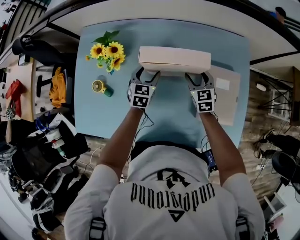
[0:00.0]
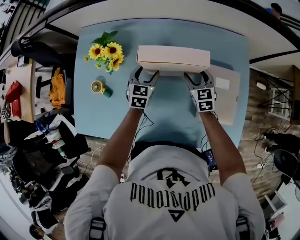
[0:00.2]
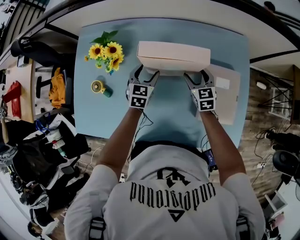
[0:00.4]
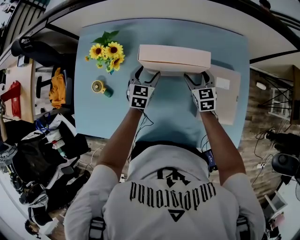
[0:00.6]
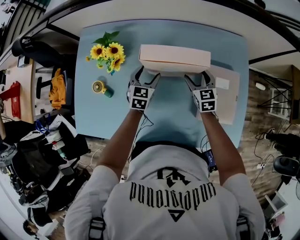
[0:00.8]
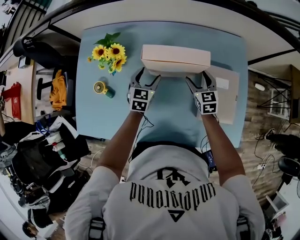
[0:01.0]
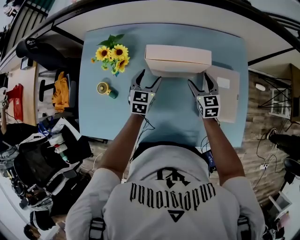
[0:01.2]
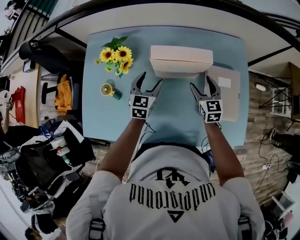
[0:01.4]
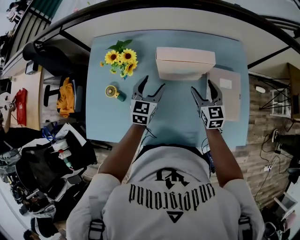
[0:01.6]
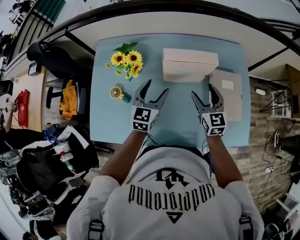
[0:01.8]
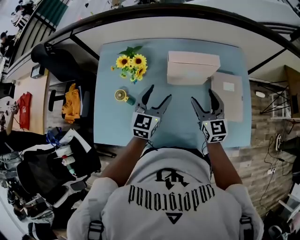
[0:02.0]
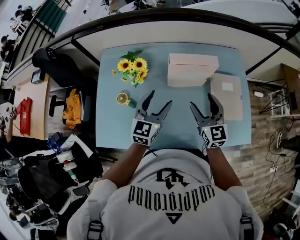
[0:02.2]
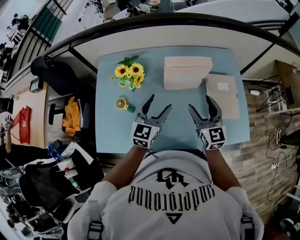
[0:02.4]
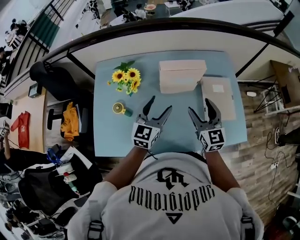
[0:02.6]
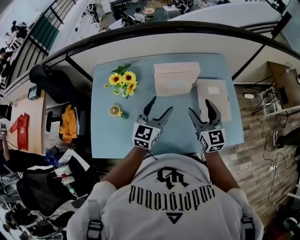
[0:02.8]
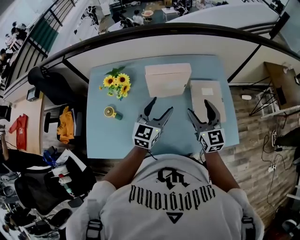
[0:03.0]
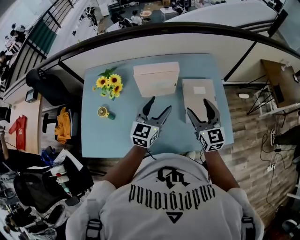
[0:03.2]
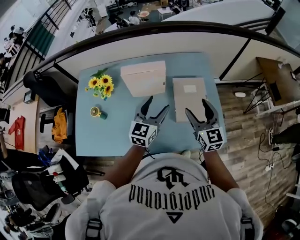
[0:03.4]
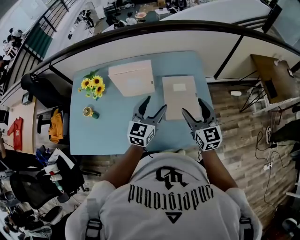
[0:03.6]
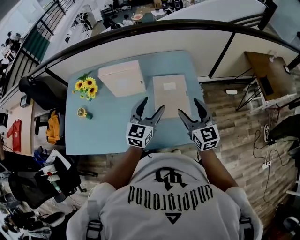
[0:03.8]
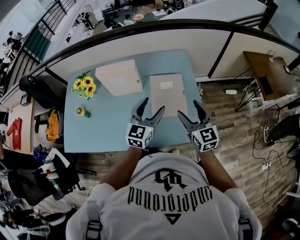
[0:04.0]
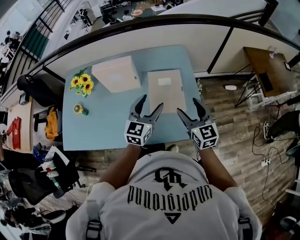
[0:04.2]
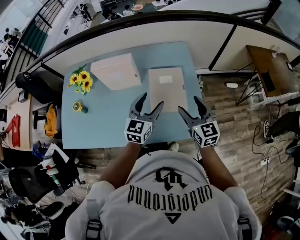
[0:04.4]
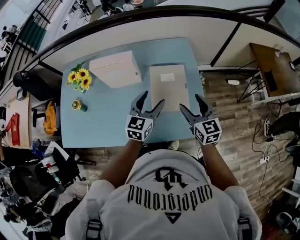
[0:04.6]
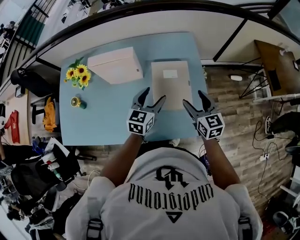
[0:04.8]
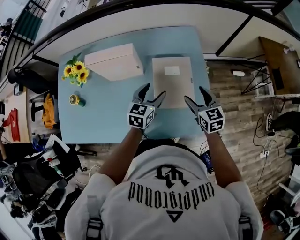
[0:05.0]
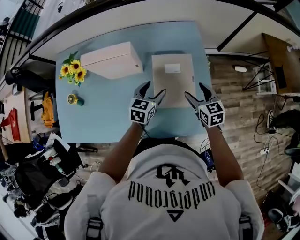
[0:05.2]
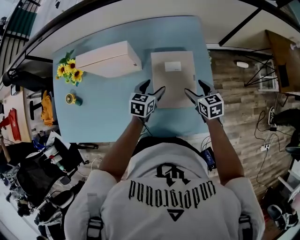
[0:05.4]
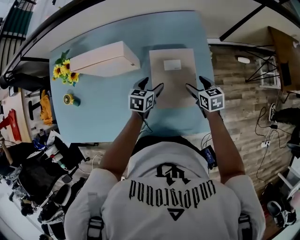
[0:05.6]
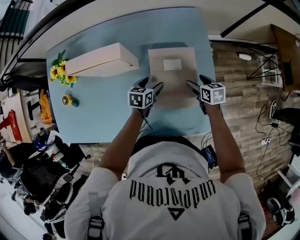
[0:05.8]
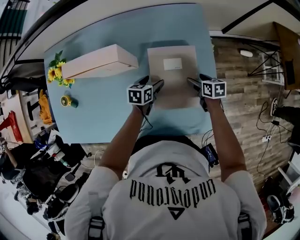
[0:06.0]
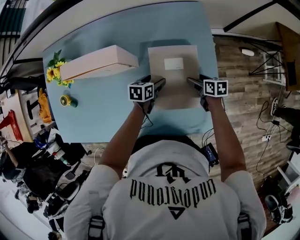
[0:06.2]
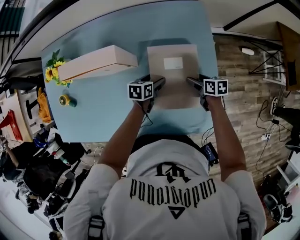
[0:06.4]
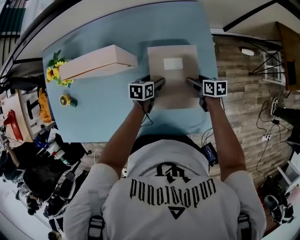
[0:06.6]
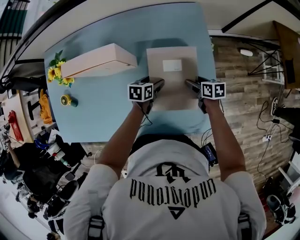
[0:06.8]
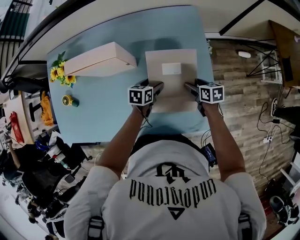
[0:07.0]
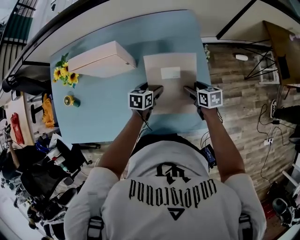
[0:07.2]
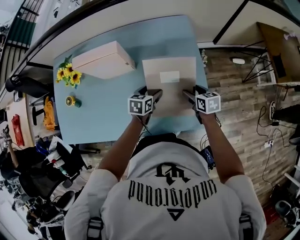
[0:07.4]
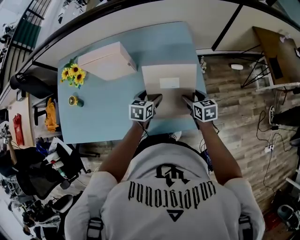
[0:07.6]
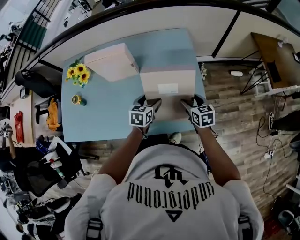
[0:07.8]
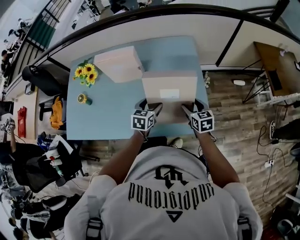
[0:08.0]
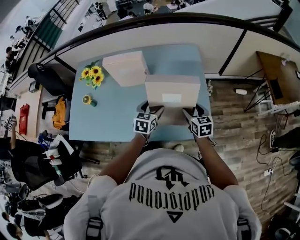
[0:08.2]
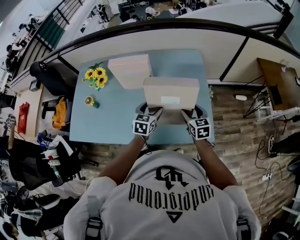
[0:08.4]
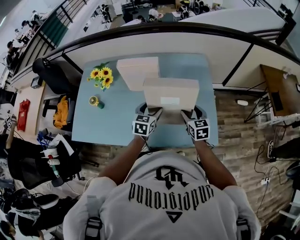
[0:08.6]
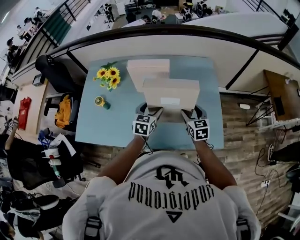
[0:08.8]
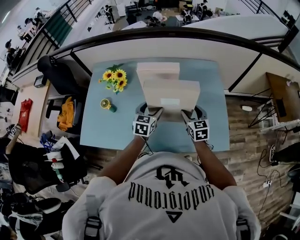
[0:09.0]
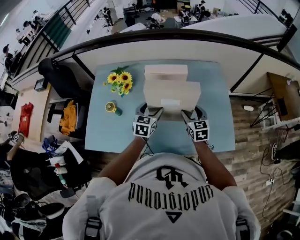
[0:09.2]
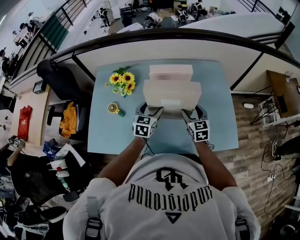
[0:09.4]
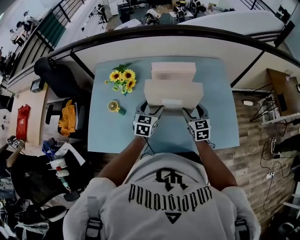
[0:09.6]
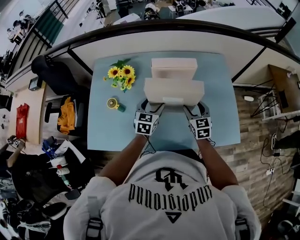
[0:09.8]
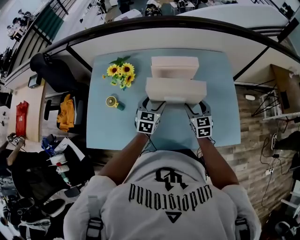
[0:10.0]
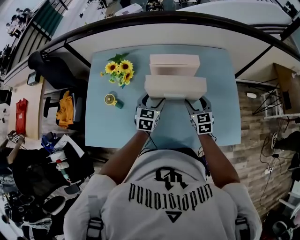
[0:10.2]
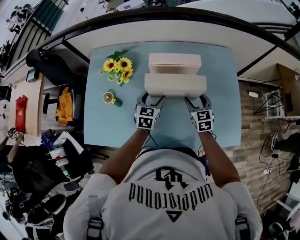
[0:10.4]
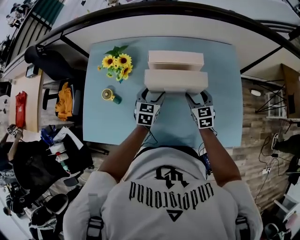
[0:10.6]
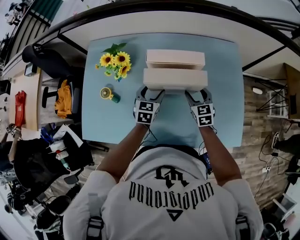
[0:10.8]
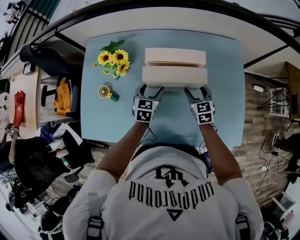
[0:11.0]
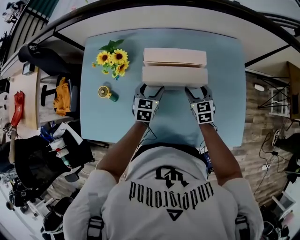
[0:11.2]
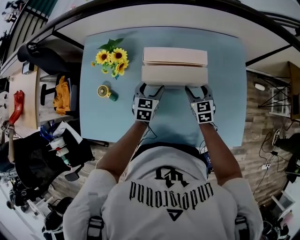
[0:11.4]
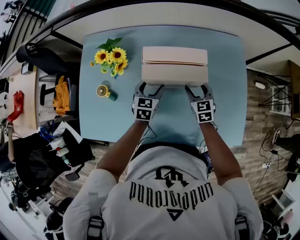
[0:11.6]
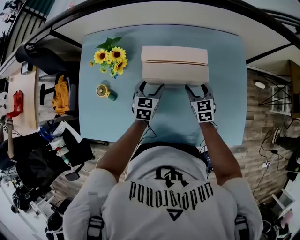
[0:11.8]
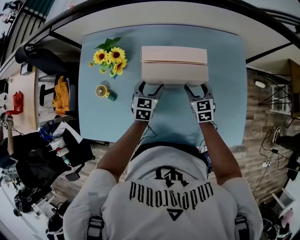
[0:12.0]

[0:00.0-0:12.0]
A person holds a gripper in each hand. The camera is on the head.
0:00.0 to 0:01.6: The two grippers go some 10 cm upward and backward.
0:01.6 to 0:03.0: The left gripper heads upward, backward and to the right, covering roughly 20 cm. The right gripper moves upward and backward, roughly 20 cm.
0:03.0 to 0:04.4: Both grippers travel together to the right, approximately 25 cm.
0:04.4 to 0:06.0: Both grippers travel together downward and forward, some 35 cm. The right gripper points its fingers approximately 40 degrees further downward; the left gripper tips its fingers downward by some 30 degrees.
0:06.0 to 0:07.6: The grippers both shift backward and upward by roughly 15 cm.
0:07.6 to 0:09.0: The two grippers go some 25 cm to the left and upward. The left gripper rotates about 20 degrees; the right gripper turns by approximately 20 degrees.
0:09.0 to 0:10.4: Both grippers move to the left and forward, some 10 cm.
0:10.4 to 0:12.0: The right gripper shifts approximately 10 cm forward and downward. The left gripper travels downward and forward by about 10 cm.

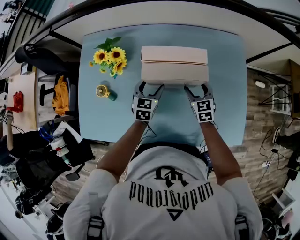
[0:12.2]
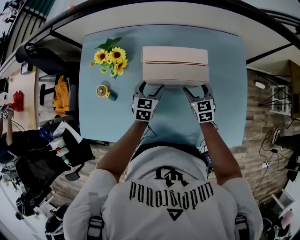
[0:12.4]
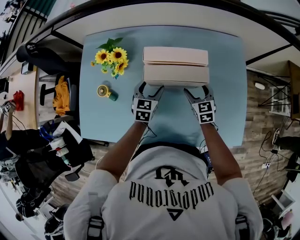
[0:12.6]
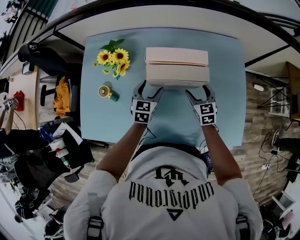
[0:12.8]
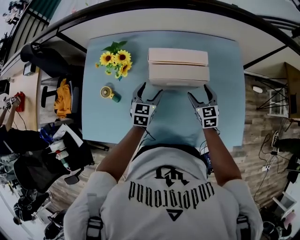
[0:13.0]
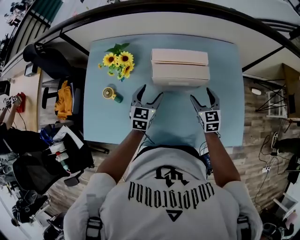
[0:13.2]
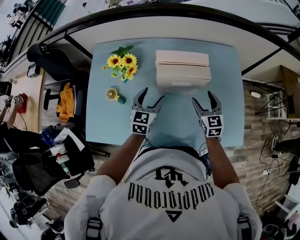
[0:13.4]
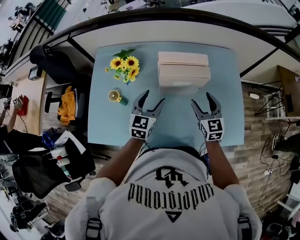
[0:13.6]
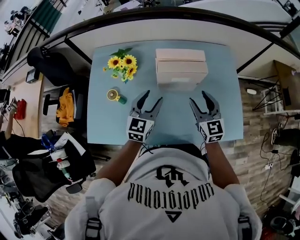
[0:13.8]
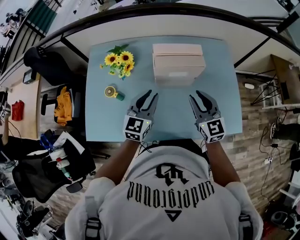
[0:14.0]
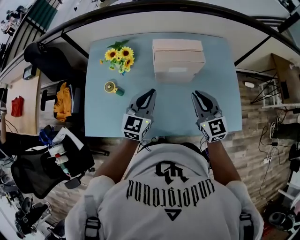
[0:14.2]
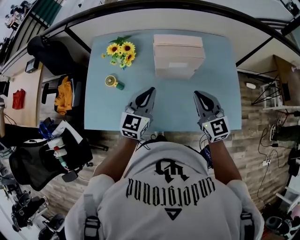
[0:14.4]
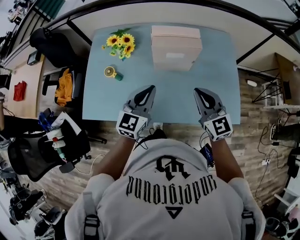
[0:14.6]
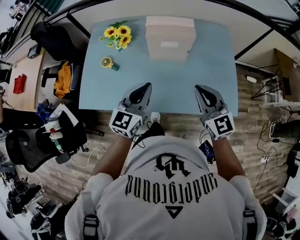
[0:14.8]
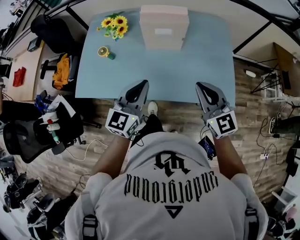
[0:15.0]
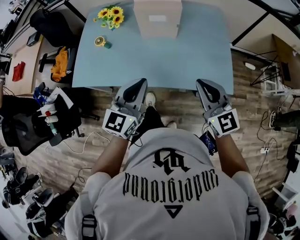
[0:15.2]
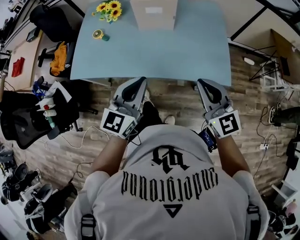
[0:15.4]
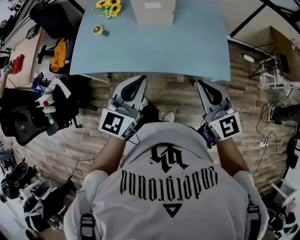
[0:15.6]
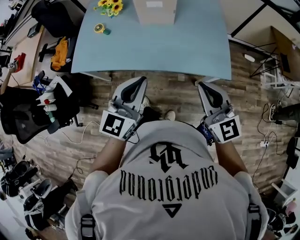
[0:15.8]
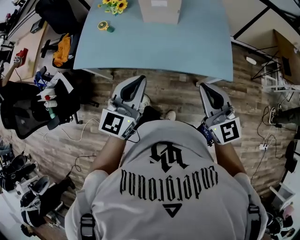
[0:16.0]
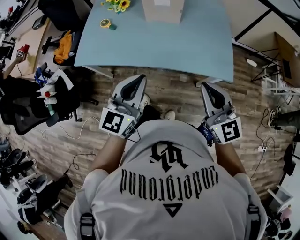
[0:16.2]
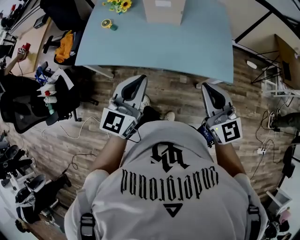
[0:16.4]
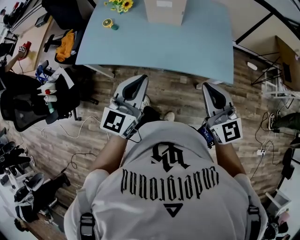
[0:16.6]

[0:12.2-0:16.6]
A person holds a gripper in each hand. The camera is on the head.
0:12.2 to 0:13.6: The grippers both shift upward and backward by roughly 15 cm.
0:13.6 to 0:15.2: Both grippers move backward, some 30 cm. The left gripper closes its fingers. The right gripper rotates approximately 20 degrees, and closes its fingers.
0:15.2 to 0:16.6: Both grippers move backward, about 10 cm.

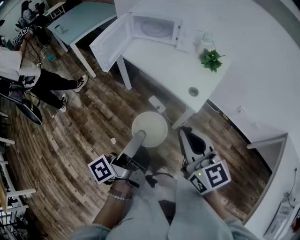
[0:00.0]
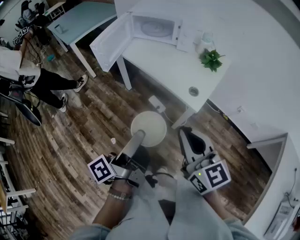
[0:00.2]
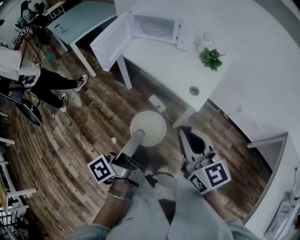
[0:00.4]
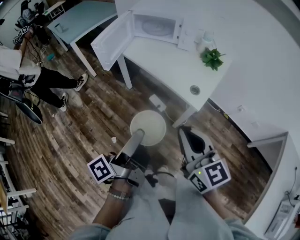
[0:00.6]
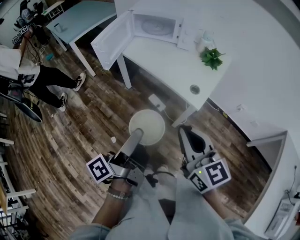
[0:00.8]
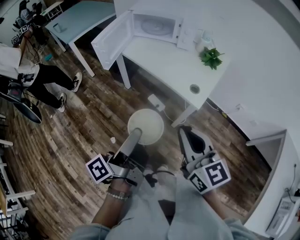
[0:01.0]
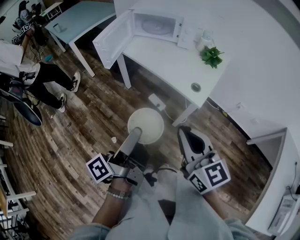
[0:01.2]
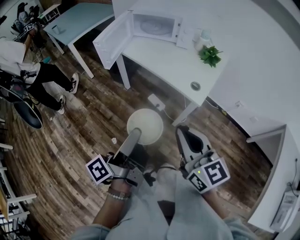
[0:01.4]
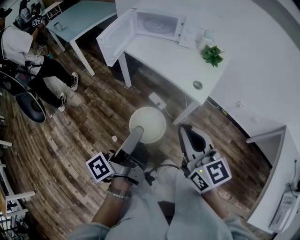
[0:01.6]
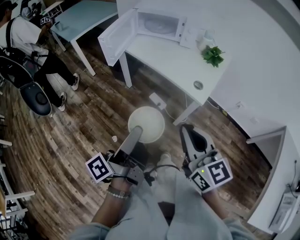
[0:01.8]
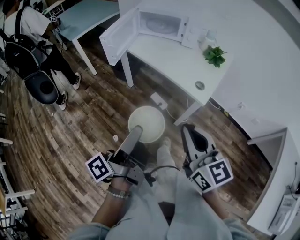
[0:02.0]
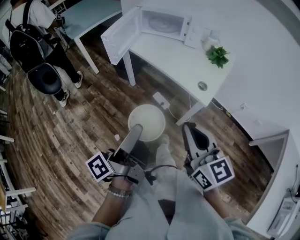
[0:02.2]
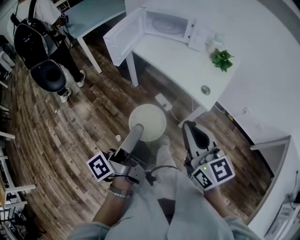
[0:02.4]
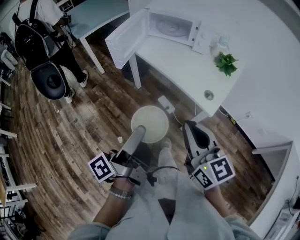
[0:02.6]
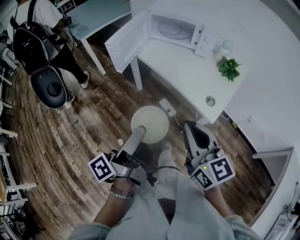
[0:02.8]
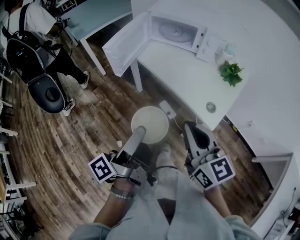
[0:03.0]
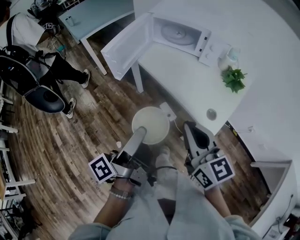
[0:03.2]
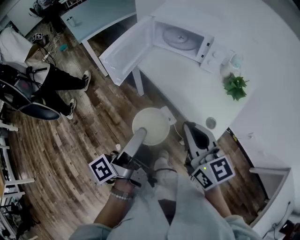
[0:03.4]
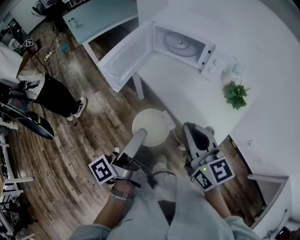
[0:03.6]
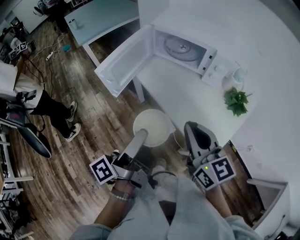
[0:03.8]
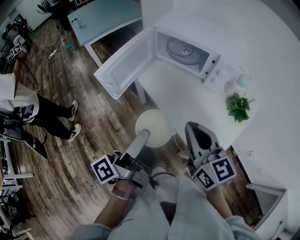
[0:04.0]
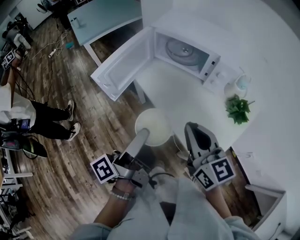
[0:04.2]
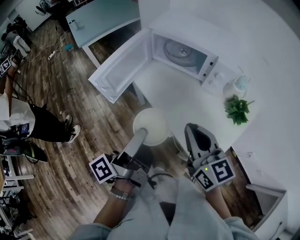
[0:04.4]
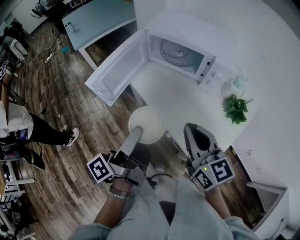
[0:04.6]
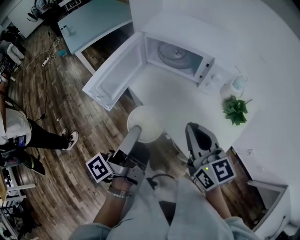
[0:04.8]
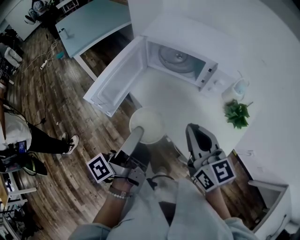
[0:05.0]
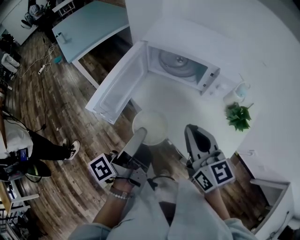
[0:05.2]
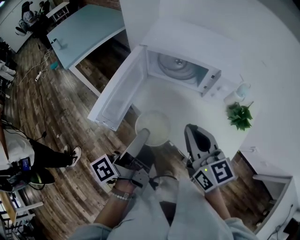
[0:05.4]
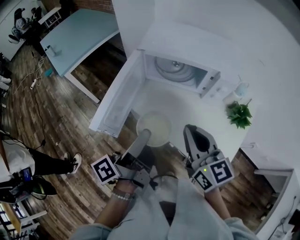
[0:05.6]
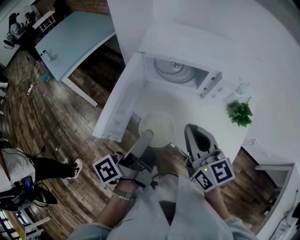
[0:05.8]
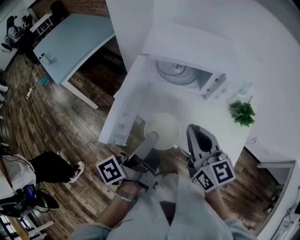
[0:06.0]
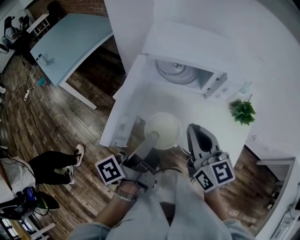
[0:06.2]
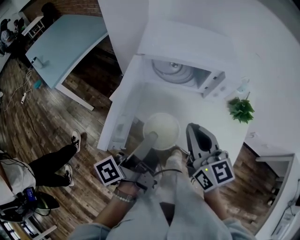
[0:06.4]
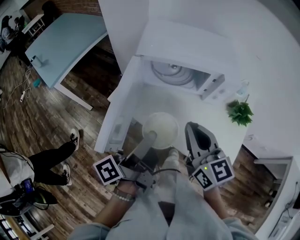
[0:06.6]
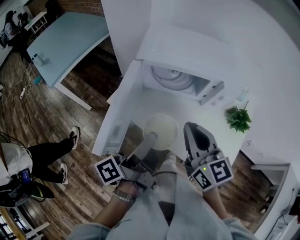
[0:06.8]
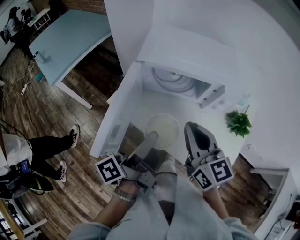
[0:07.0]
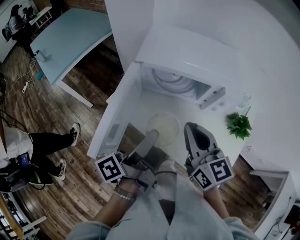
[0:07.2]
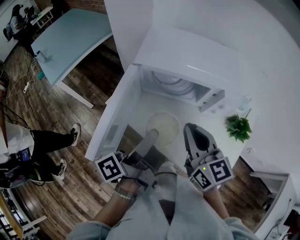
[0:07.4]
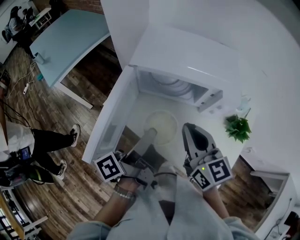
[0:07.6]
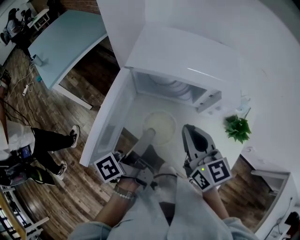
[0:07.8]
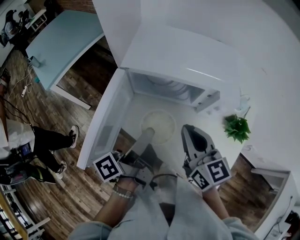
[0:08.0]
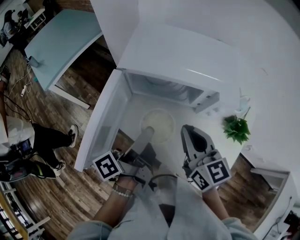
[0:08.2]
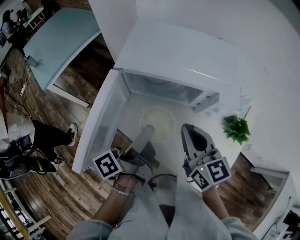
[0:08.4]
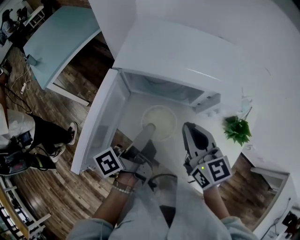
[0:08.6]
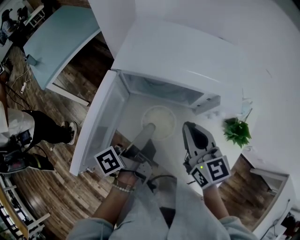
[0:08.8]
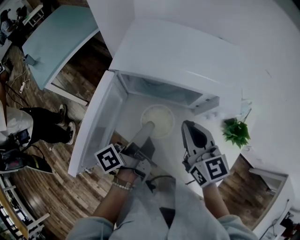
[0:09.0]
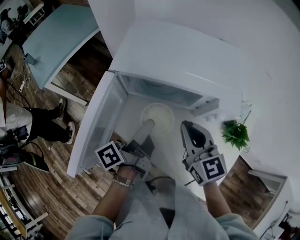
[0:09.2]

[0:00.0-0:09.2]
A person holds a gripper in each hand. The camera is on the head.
0:00.0 to 0:01.6: The right gripper moves roughly 5 cm.
0:01.6 to 0:03.0: The right gripper changes place by some 15 cm.
0:03.0 to 0:04.6: The right gripper changes place by approximately 20 cm.
0:04.6 to 0:06.2: The right gripper ends up approximately 15 cm from where it was, and turns by approximately 20 degrees.
0:06.2 to 0:07.6: The right gripper moves some 10 cm.
0:07.6 to 0:09.2: The right gripper shifts by roughly 10 cm.
